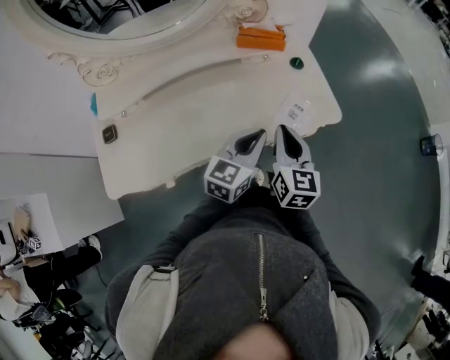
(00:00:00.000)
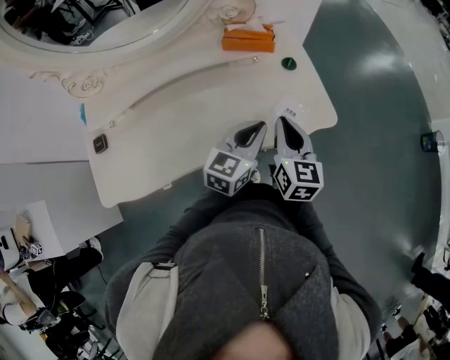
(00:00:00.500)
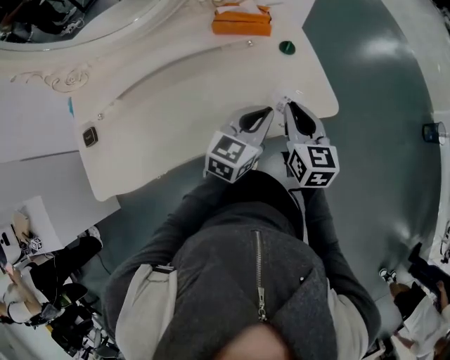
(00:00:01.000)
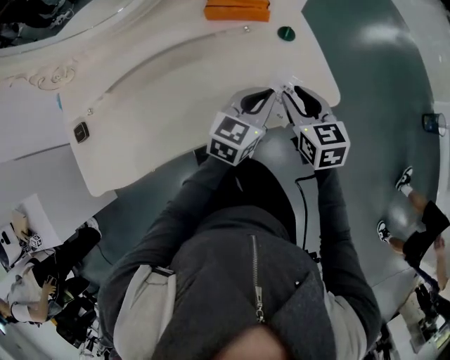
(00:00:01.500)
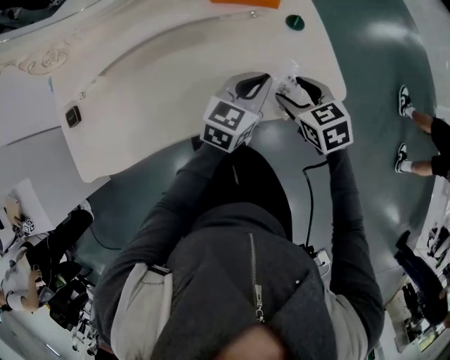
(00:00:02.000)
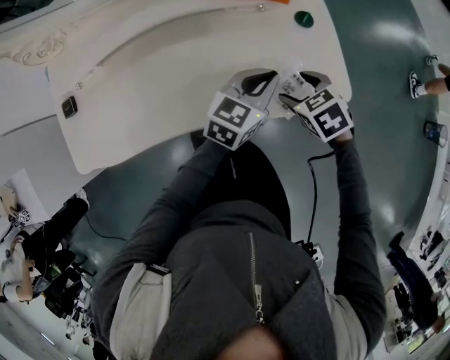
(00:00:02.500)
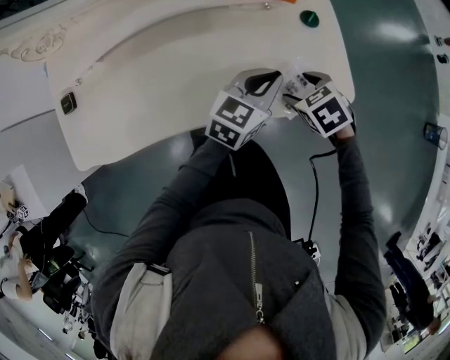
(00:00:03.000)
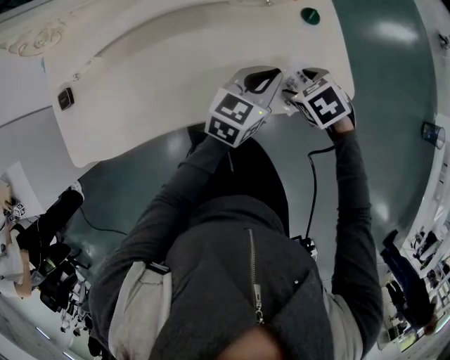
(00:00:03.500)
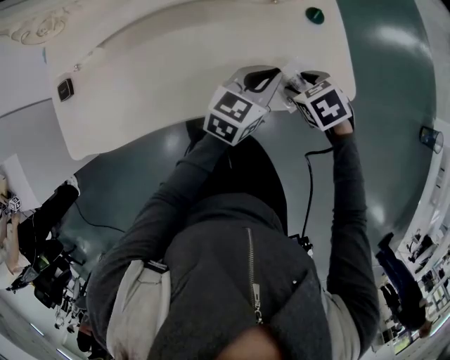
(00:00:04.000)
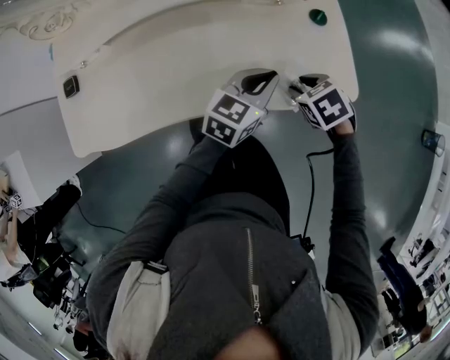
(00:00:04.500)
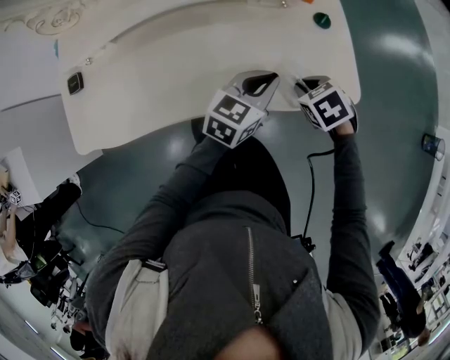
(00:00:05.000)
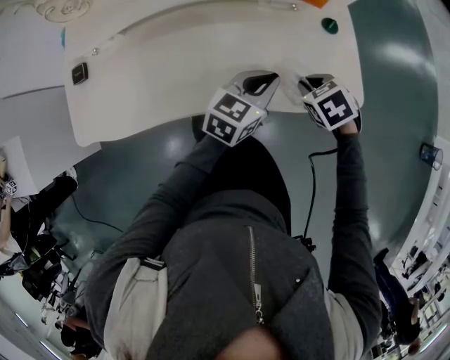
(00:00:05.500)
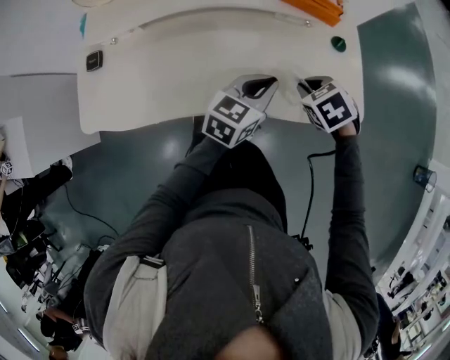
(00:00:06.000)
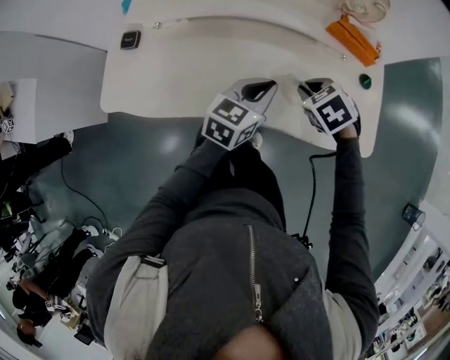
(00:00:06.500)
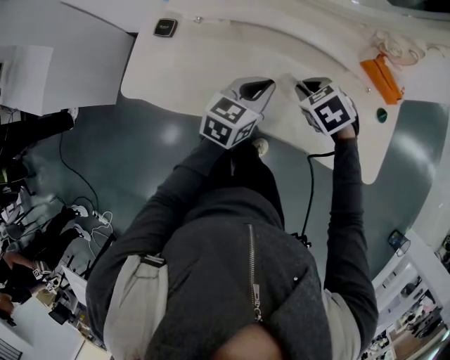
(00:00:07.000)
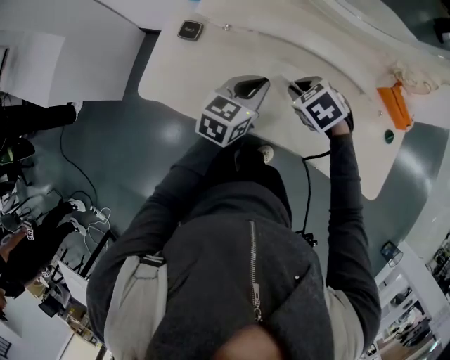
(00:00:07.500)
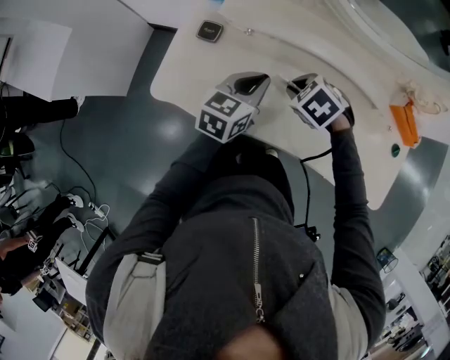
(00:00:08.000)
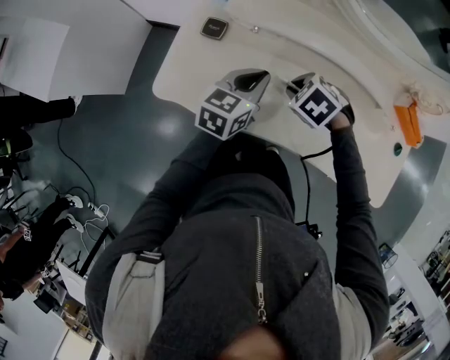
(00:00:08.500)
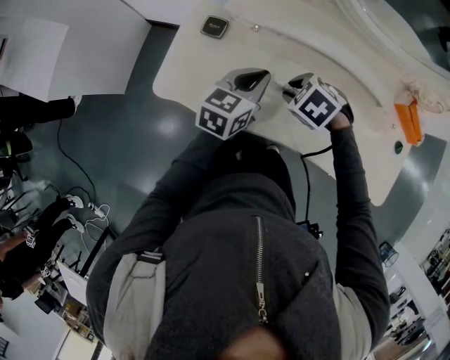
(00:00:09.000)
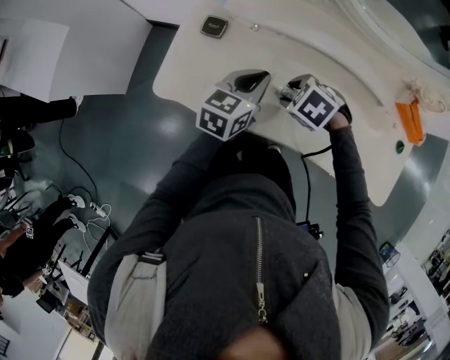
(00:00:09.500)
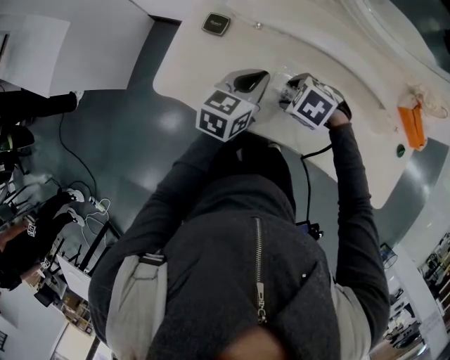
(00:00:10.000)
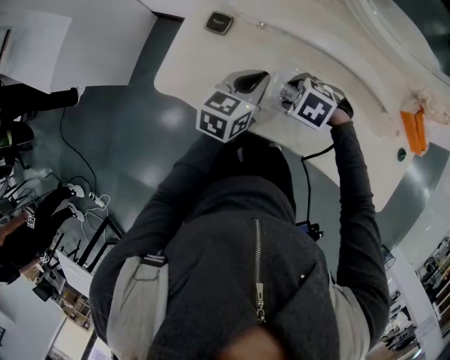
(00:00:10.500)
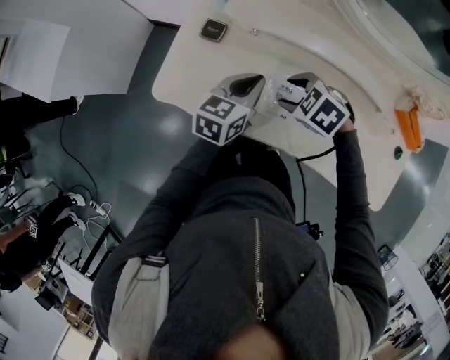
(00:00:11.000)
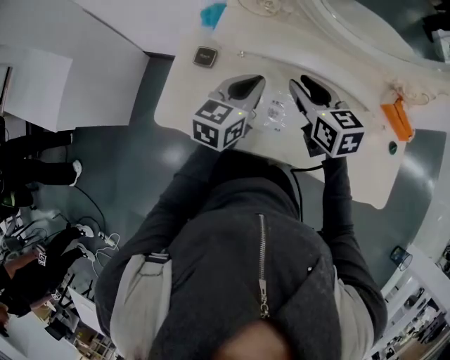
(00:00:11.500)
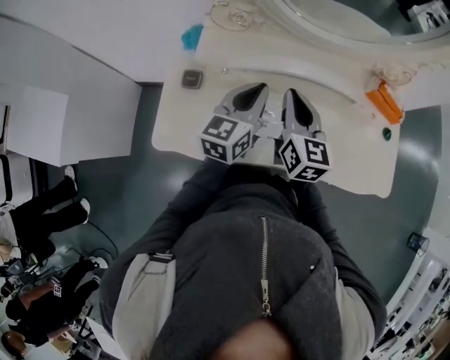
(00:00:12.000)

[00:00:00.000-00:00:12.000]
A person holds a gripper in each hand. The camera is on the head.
00:00:00.000 to 00:00:02.000: The right gripper moves downward and forward, some 15 cm, tilts its fingers approximately 30 degrees downward, and opens its fingers, while the left gripper is displaced forward and downward by roughly 15 cm.
00:00:02.000 to 00:00:04.000: The right gripper goes roughly 5 cm downward, and swivels roughly 30 degrees.
00:00:04.000 to 00:00:06.000: The two grippers go approximately 5 cm to the left. The right gripper closes its fingers.
00:00:06.000 to 00:00:08.000: The right gripper changes place by roughly 35 cm, and rotates some 40 degrees. Meanwhile the left gripper ends up approximately 35 cm from where it was, and changes its angle by some 30 degrees.
00:00:08.000 to 00:00:10.000: The right gripper shifts by some 5 cm, and opens its fingers.
00:00:10.000 to 00:00:12.000: The right gripper moves upward, approximately 20 cm, angles its fingers upward, by some 70 degrees, and closes up. Meanwhile the left gripper heads upward, covering roughly 10 cm.

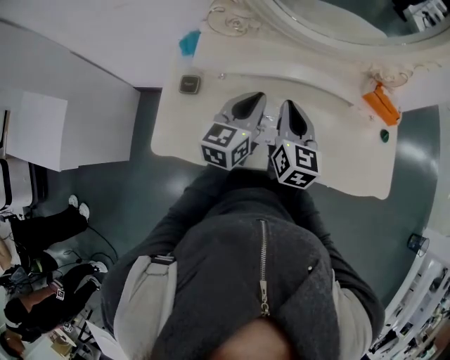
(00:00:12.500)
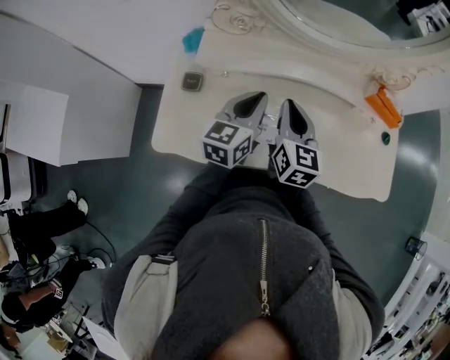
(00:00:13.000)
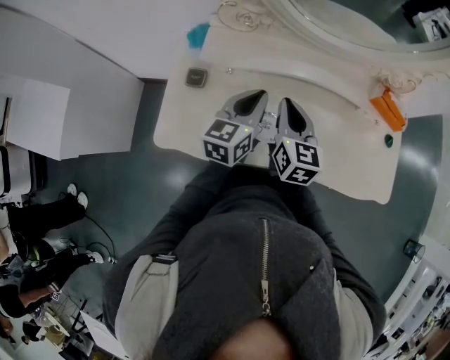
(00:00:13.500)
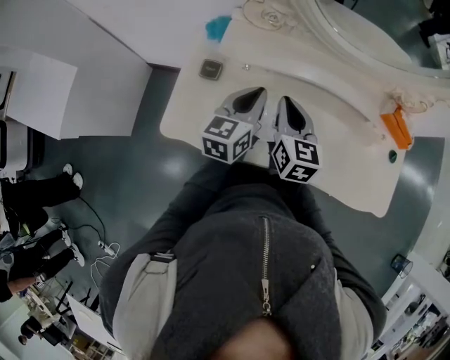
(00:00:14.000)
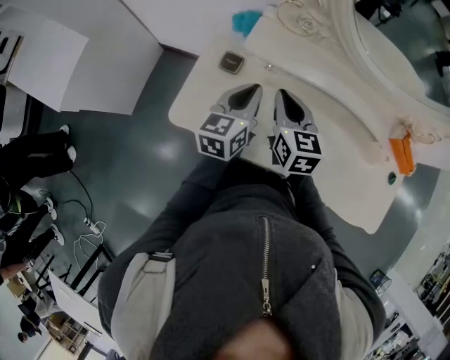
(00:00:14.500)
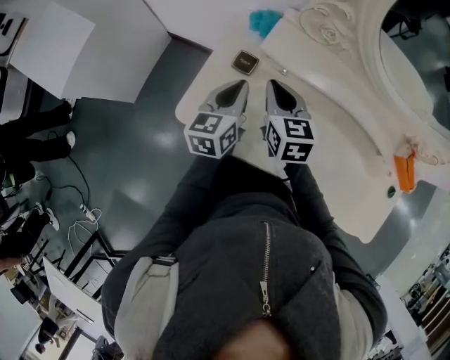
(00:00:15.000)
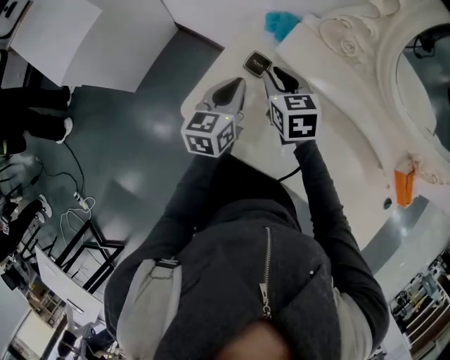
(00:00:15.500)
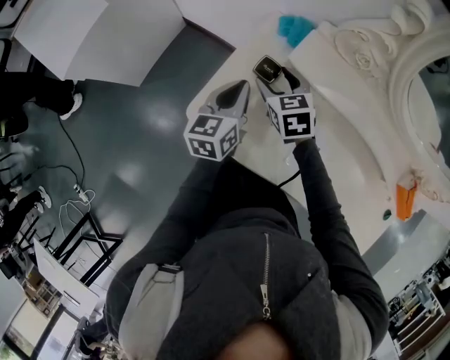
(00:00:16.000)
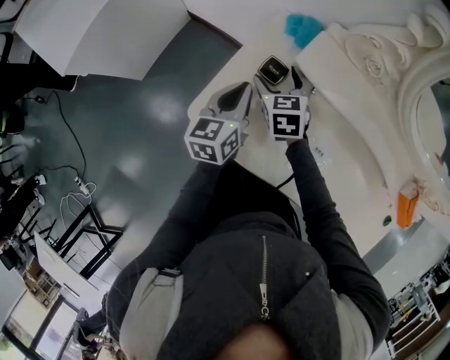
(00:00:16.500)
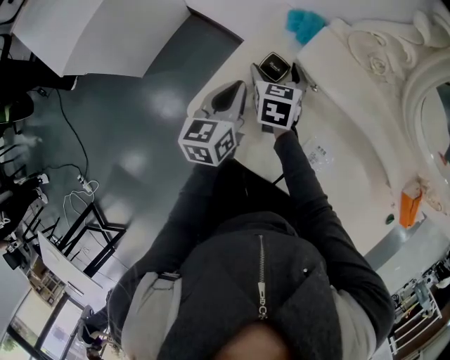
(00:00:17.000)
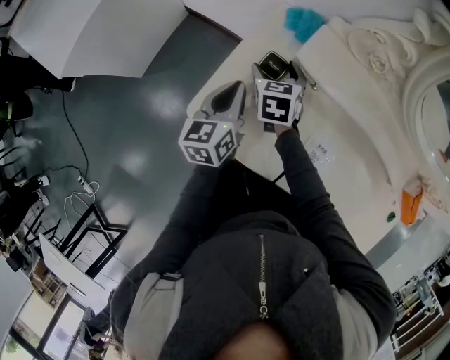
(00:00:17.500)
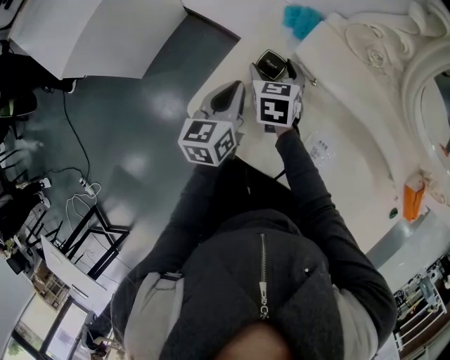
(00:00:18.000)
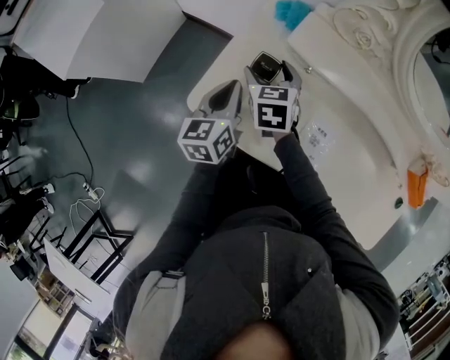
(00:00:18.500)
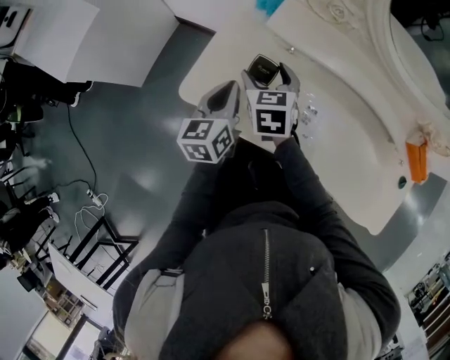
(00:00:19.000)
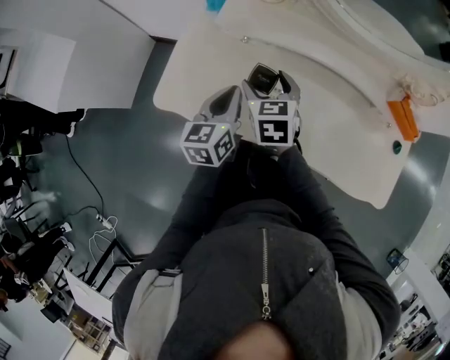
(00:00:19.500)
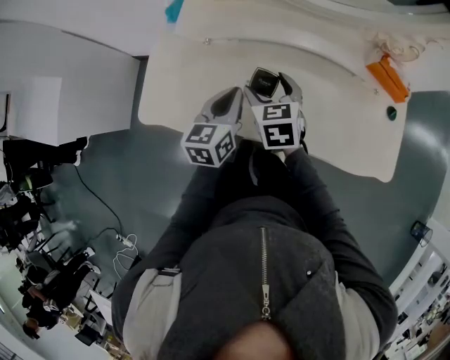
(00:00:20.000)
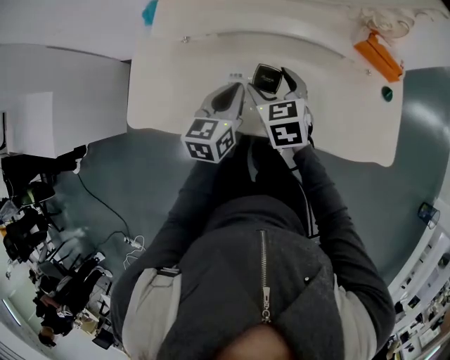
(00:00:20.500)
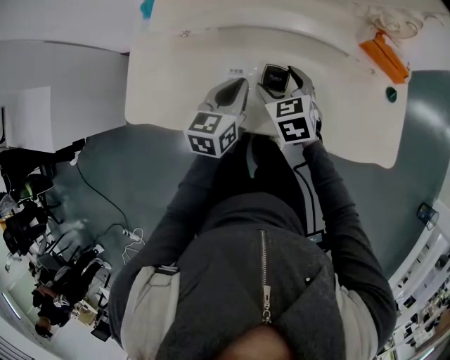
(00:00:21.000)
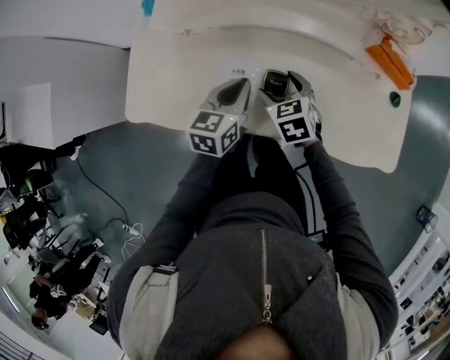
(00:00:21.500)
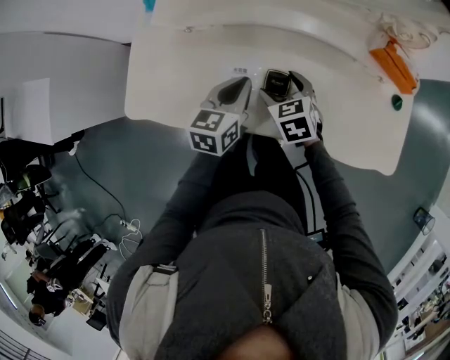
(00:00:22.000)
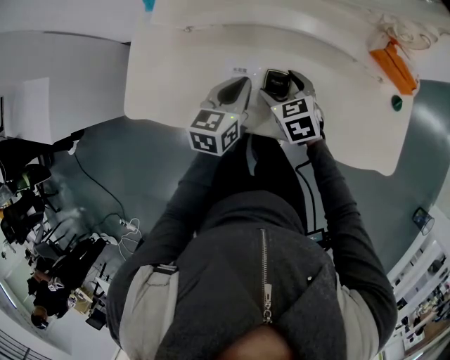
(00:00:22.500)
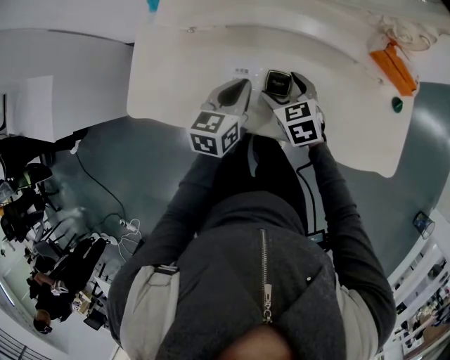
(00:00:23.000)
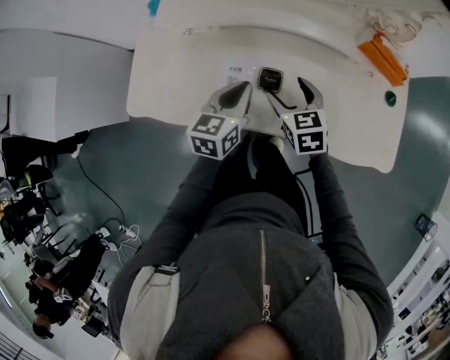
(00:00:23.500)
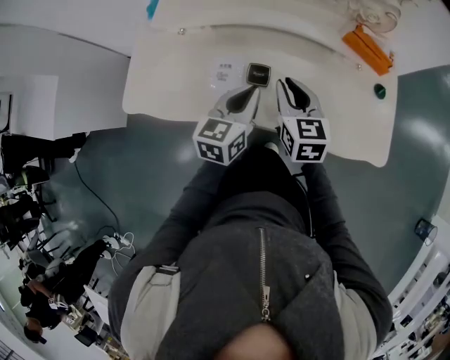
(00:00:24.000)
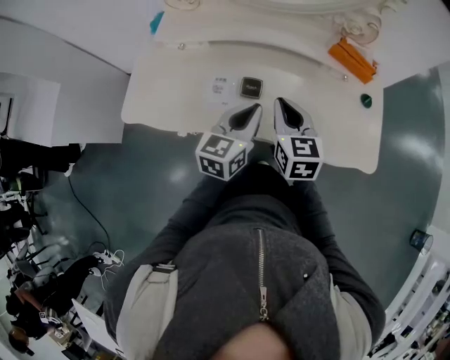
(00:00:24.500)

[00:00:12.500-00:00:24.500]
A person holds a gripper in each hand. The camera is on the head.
00:00:12.500 to 00:00:14.500: Both grippers travel together to the left, approximately 15 cm. The right gripper rotates about 30 degrees.
00:00:14.500 to 00:00:16.500: The right gripper travels to the left, forward and downward by some 20 cm, rotates approximately 30 degrees, and opens its fingers. The left gripper moves to the left and downward, about 15 cm.
00:00:16.500 to 00:00:18.500: The grippers stay close to where they were, moving slightly.
00:00:18.500 to 00:00:20.500: The right gripper heads to the right and backward, covering approximately 35 cm, while the left gripper is displaced to the right by roughly 30 cm, and rotates approximately 30 degrees.
00:00:20.500 to 00:00:22.500: The right gripper is displaced downward by approximately 10 cm.
00:00:22.500 to 00:00:24.500: The left gripper goes approximately 15 cm to the right, backward and upward, while the right gripper shifts roughly 15 cm upward, to the right and backward, turns by some 30 degrees, and closes.

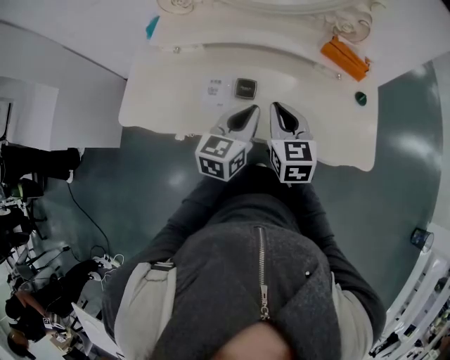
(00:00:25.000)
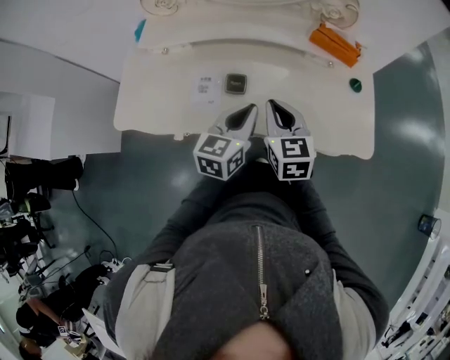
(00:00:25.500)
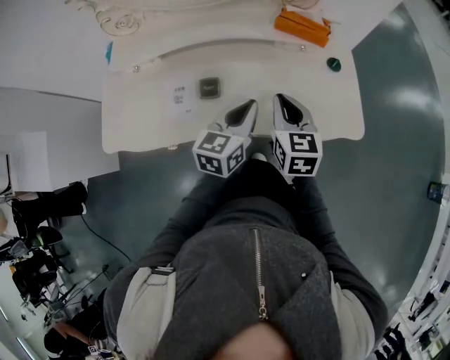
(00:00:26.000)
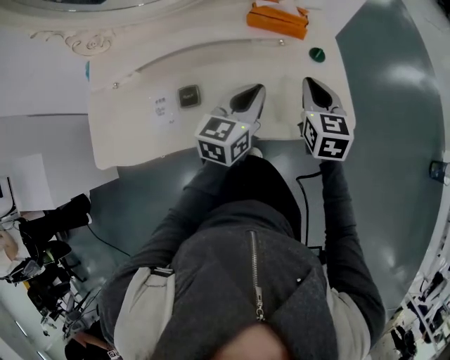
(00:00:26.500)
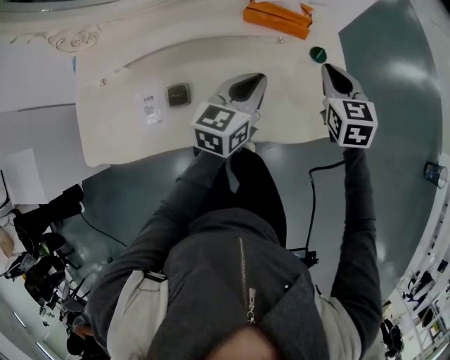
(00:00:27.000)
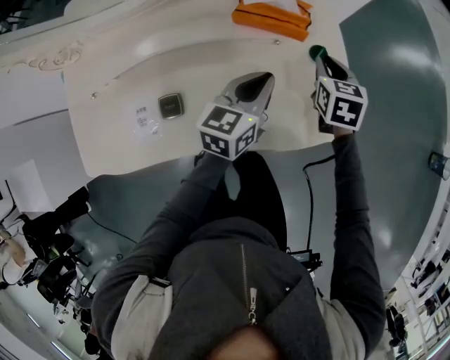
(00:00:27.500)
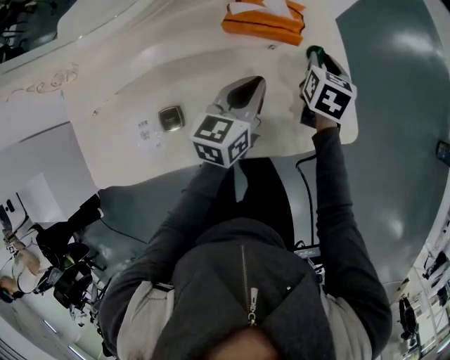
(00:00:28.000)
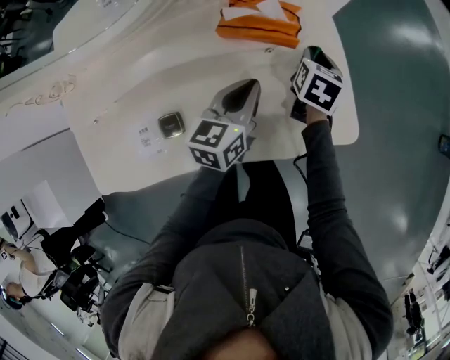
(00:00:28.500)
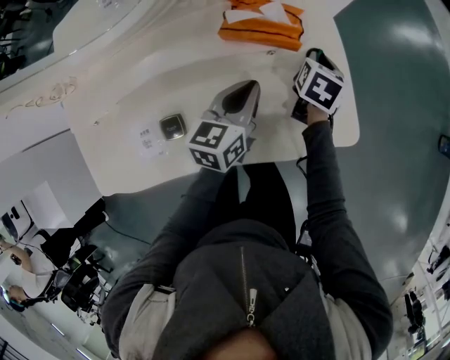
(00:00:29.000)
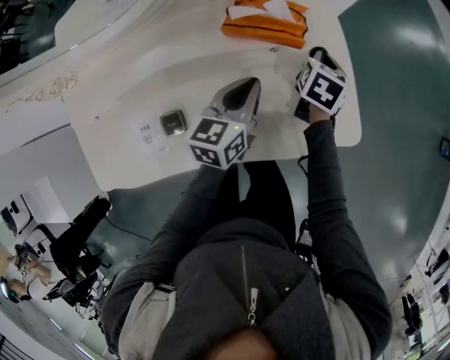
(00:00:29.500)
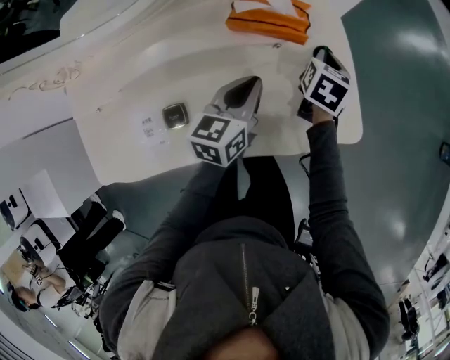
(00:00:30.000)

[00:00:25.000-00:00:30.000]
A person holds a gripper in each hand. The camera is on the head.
00:00:25.000 to 00:00:27.500: The right gripper changes place by approximately 35 cm, and swivels some 30 degrees; the left gripper ends up approximately 25 cm from where it was, and swivels some 20 degrees.
00:00:27.500 to 00:00:30.000: The right gripper turns by about 20 degrees.
